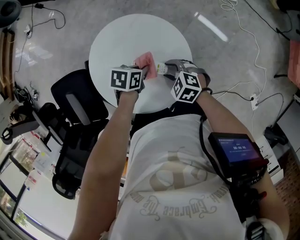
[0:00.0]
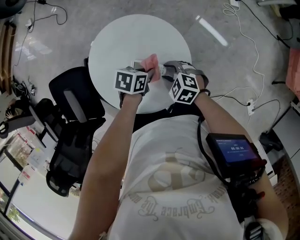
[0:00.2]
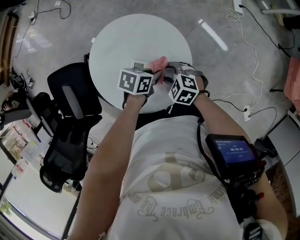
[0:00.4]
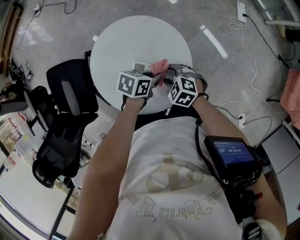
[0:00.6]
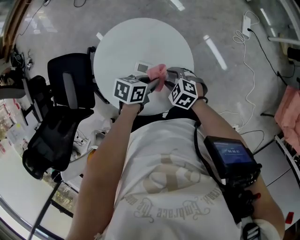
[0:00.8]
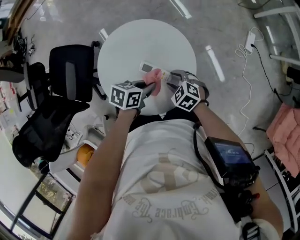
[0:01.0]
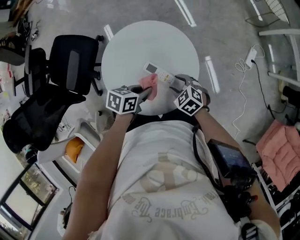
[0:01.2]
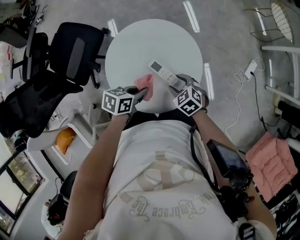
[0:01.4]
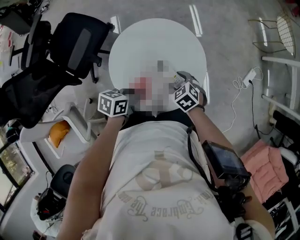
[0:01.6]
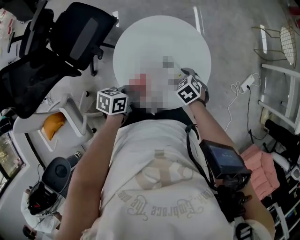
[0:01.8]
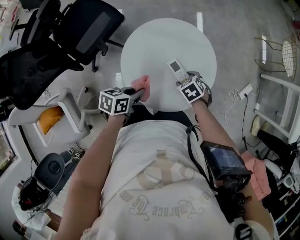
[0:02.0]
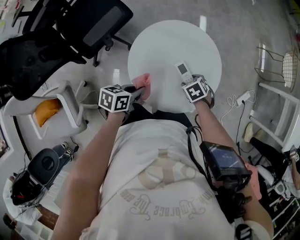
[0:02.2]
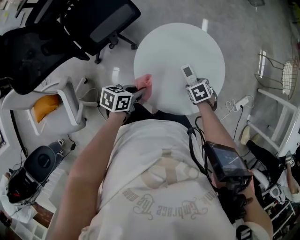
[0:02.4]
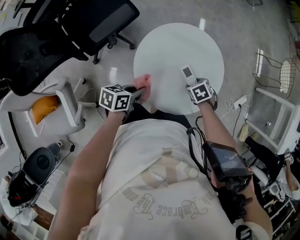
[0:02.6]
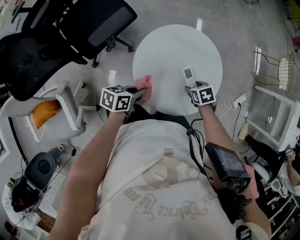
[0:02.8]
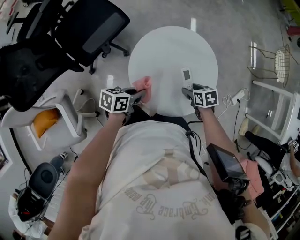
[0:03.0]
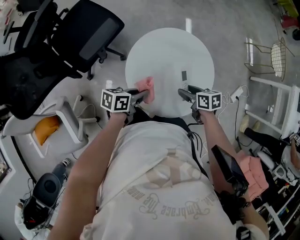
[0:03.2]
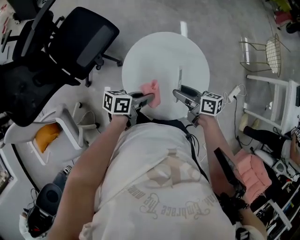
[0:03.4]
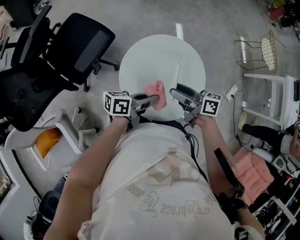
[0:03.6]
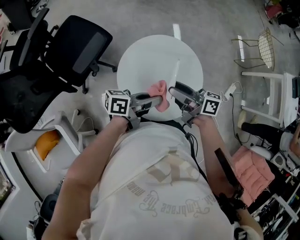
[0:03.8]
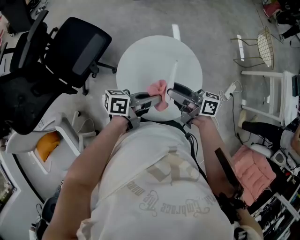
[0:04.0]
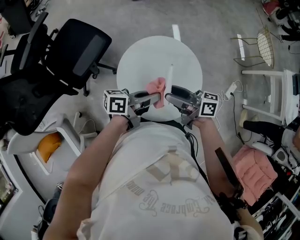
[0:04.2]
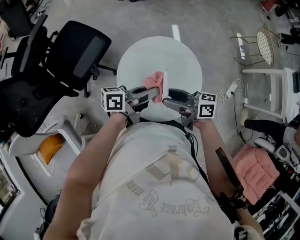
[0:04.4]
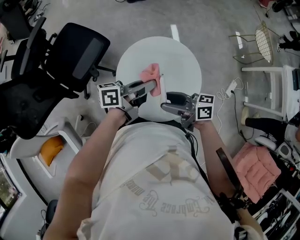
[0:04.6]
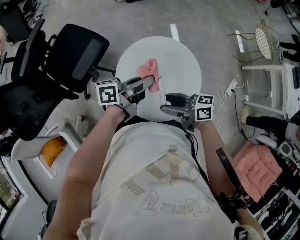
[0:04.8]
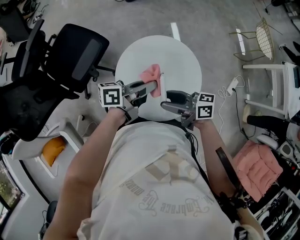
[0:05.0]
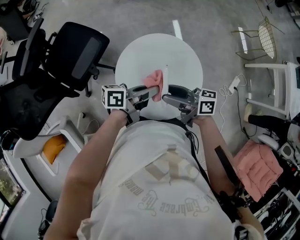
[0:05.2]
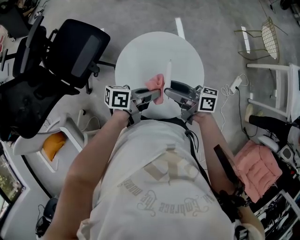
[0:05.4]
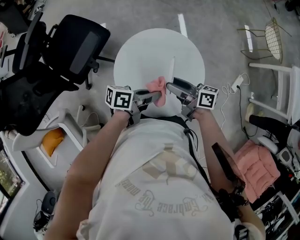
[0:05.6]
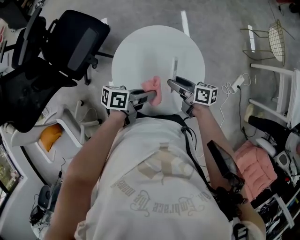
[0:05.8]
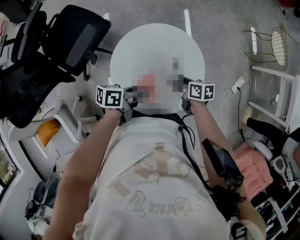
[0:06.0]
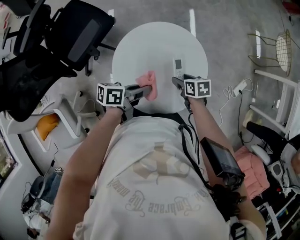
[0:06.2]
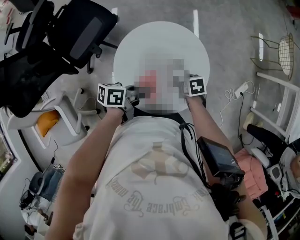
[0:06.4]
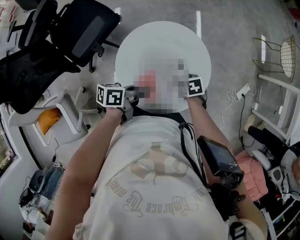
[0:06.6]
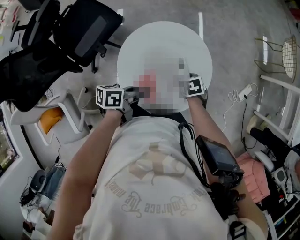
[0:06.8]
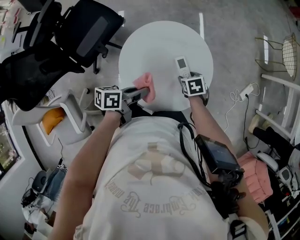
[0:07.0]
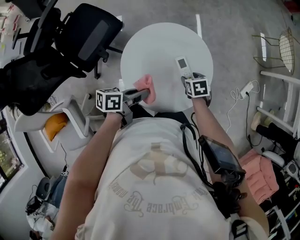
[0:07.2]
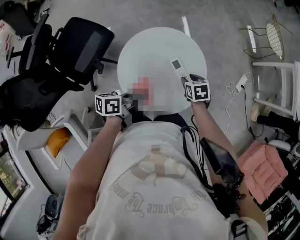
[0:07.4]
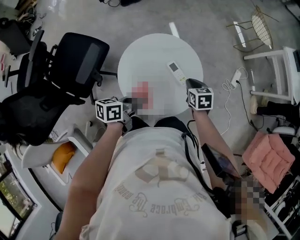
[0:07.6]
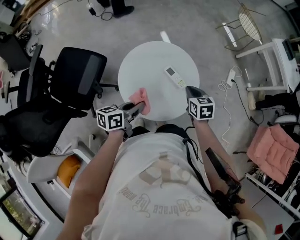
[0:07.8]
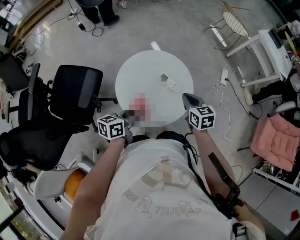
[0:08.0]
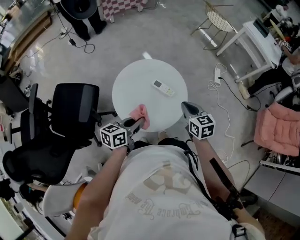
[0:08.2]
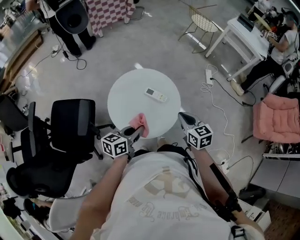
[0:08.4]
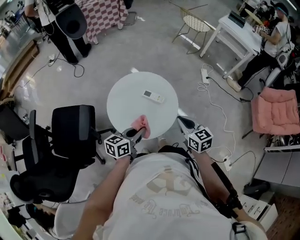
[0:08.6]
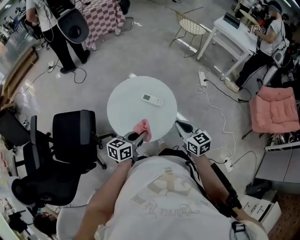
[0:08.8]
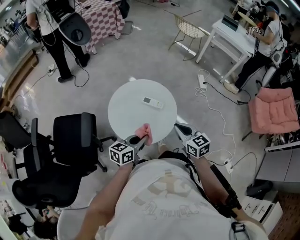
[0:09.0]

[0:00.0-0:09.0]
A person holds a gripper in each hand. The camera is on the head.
0.0 to 1.6 s: The left gripper moves roughly 15 cm, and turns by roughly 50 degrees. Meanwhile the right gripper turns by approximately 20 degrees.
1.6 to 3.0 s: The right gripper rotates roughly 30 degrees. The left gripper shifts by approximately 10 cm.
3.0 to 4.4 s: Both grippers travel together upward, about 20 cm. The right gripper tips its fingers upward by roughly 60 degrees. The left gripper tilts its fingers roughly 40 degrees upward.
4.4 to 6.0 s: The left gripper moves downward, roughly 10 cm, and swivels some 20 degrees, while the right gripper is displaced downward by approximately 20 cm, and angles its fingers downward, by about 40 degrees.
6.0 to 7.6 s: The left gripper moves some 10 cm. Meanwhile the right gripper shifts some 5 cm upward, turns by about 40 degrees, and closes its fingers.
7.6 to 9.0 s: The left gripper moves backward, upward and to the right, about 10 cm, and swivels some 40 degrees; the right gripper travels backward and upward by roughly 25 cm, and rotates approximately 30 degrees.

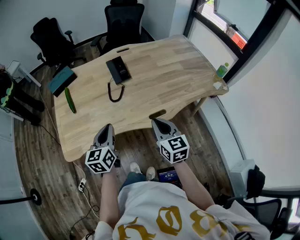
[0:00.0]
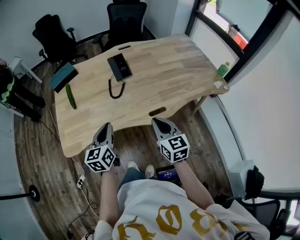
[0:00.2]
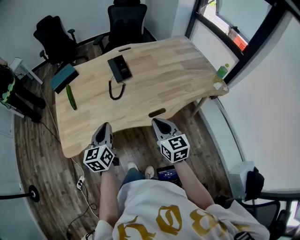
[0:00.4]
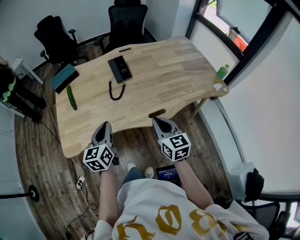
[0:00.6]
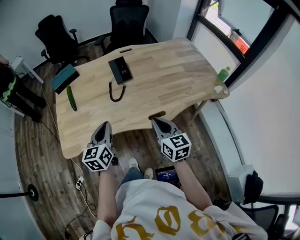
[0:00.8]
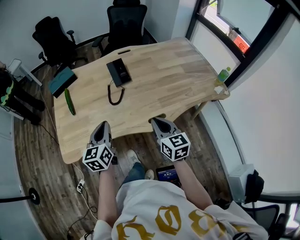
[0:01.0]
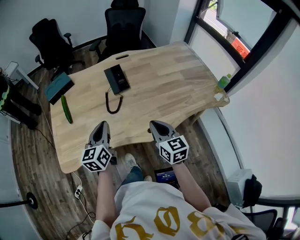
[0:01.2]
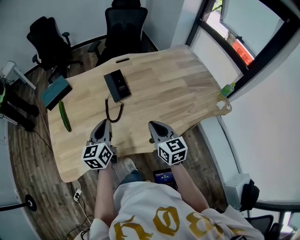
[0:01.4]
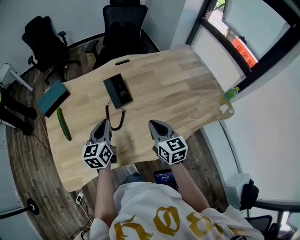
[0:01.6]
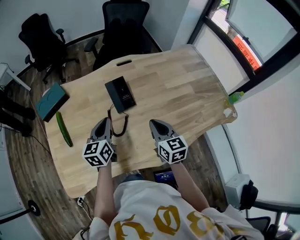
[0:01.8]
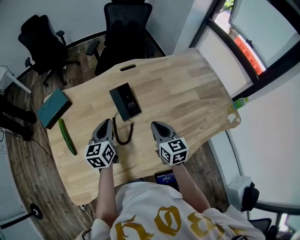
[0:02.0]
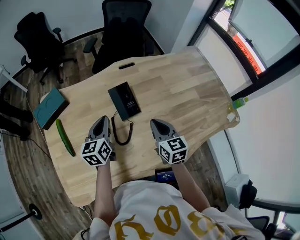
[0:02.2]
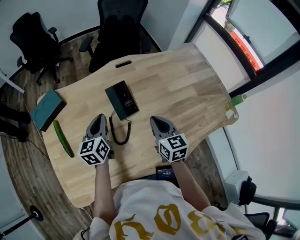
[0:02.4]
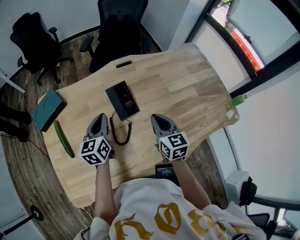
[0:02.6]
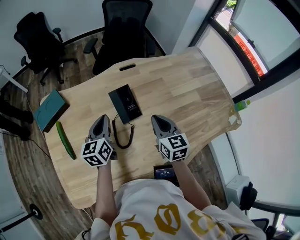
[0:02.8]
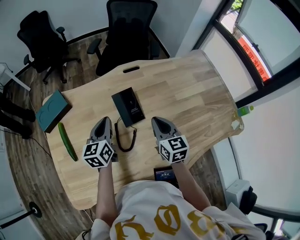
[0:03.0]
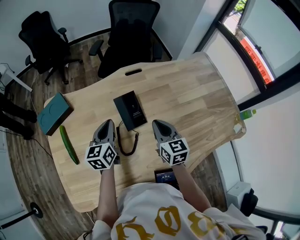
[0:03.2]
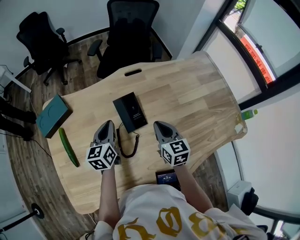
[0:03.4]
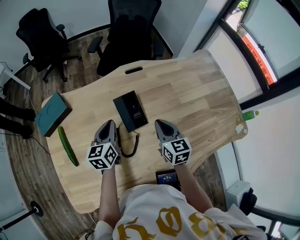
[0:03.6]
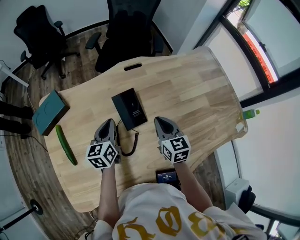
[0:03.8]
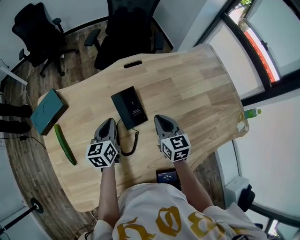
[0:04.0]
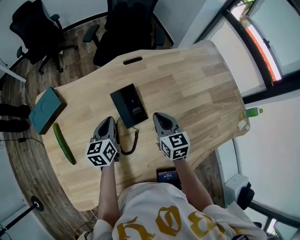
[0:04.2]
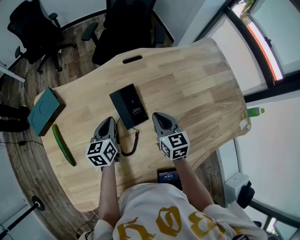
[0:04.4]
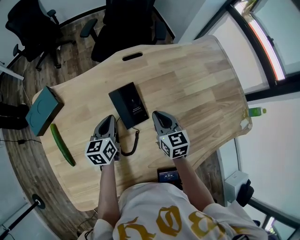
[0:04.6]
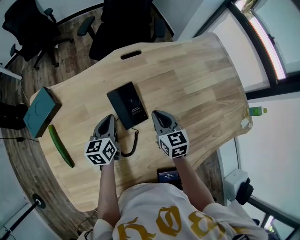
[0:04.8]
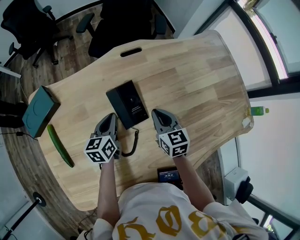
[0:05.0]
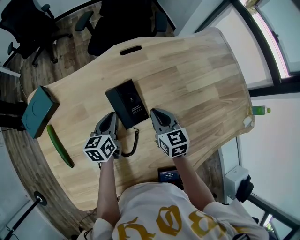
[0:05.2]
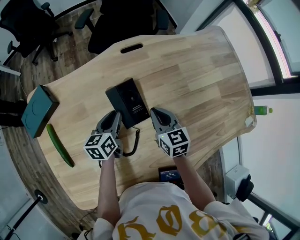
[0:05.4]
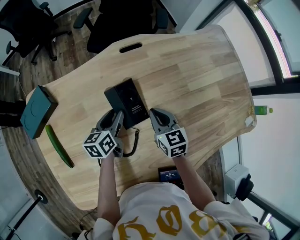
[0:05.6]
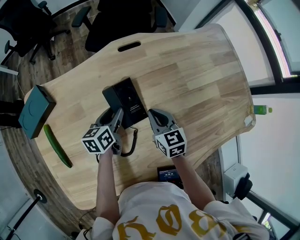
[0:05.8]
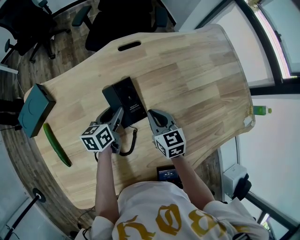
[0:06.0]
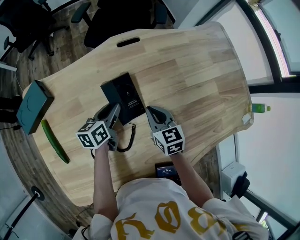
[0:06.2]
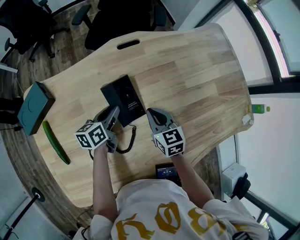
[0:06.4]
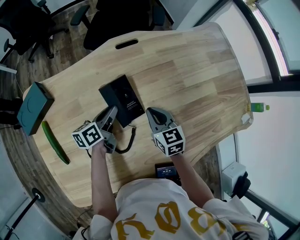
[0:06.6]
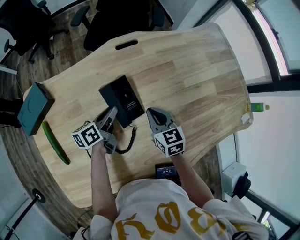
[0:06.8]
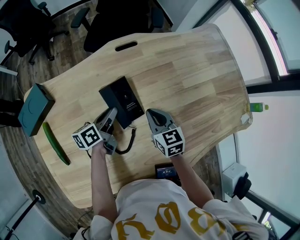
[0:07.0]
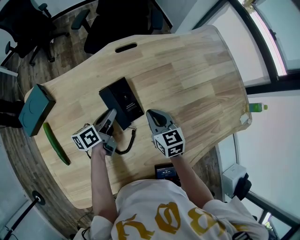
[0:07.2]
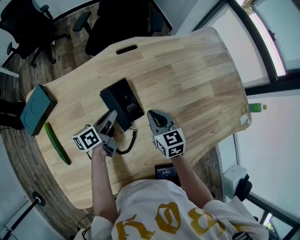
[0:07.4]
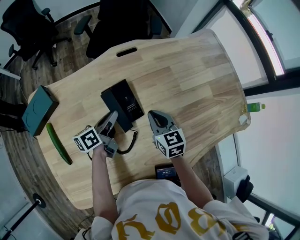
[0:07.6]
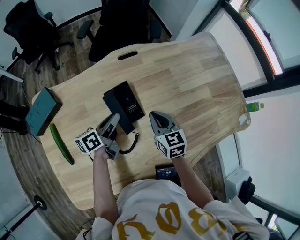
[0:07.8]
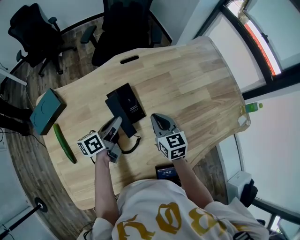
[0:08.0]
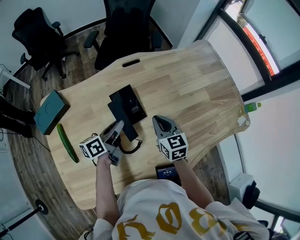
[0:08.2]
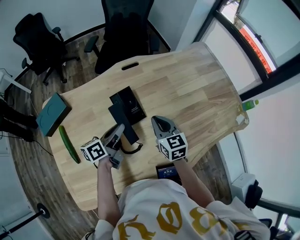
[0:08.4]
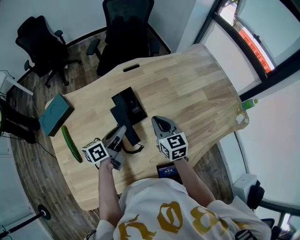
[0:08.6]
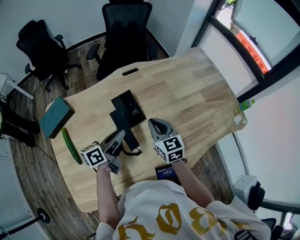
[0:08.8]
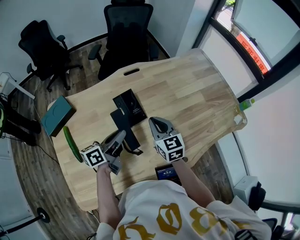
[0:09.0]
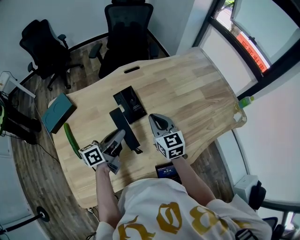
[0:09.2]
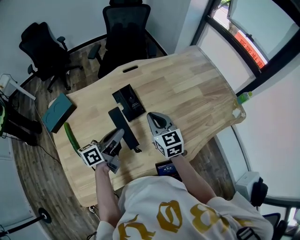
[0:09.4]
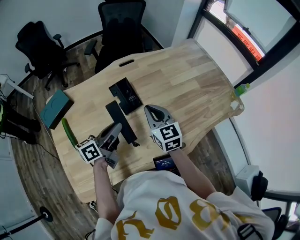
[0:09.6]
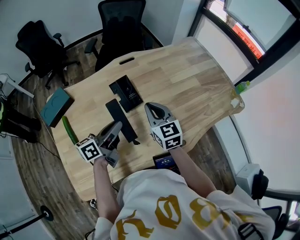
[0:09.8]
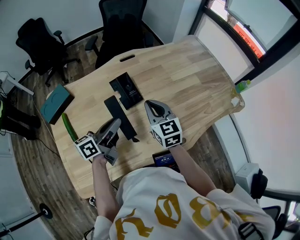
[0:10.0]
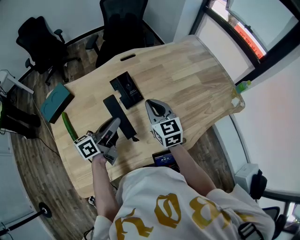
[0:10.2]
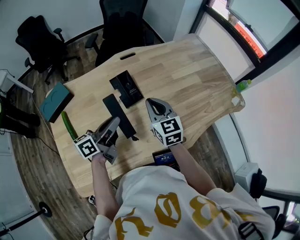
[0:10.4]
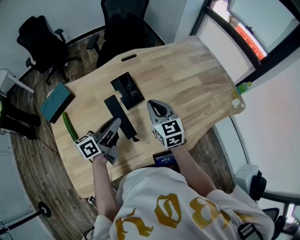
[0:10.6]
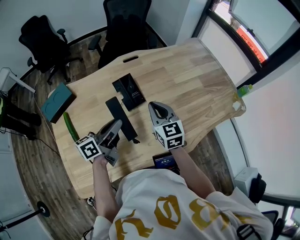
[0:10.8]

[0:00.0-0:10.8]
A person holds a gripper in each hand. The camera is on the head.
0.0 to 1.6 s: The two grippers go some 20 cm forward.
1.6 to 3.0 s: The two grippers go some 15 cm forward.
3.0 to 4.6 s: The right gripper is displaced downward and forward by about 10 cm; the left gripper travels downward by approximately 10 cm.
4.6 to 6.2 s: The left gripper shifts by roughly 5 cm, and opens its fingers.
6.2 to 7.8 s: The left gripper goes approximately 5 cm upward.
7.8 to 9.2 s: The right gripper is displaced upward and backward by approximately 10 cm. Meanwhile the left gripper moves backward and upward, approximately 15 cm.
9.2 to 10.8 s: The grippers stay close to where they were, moving slightly.

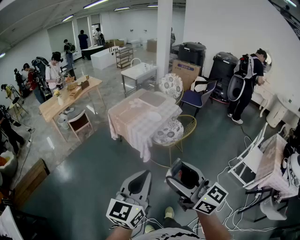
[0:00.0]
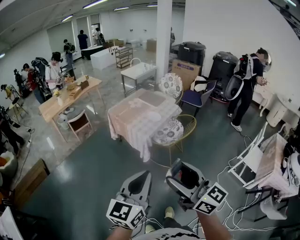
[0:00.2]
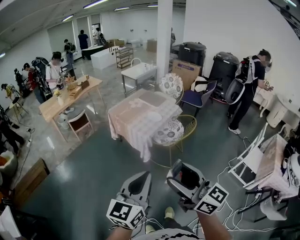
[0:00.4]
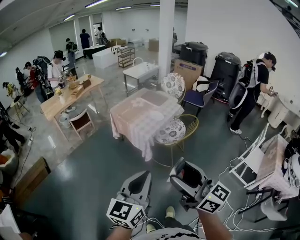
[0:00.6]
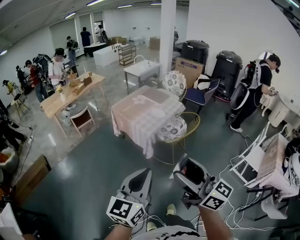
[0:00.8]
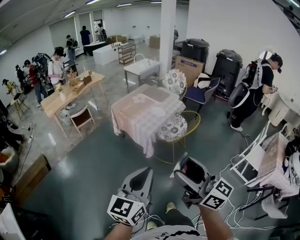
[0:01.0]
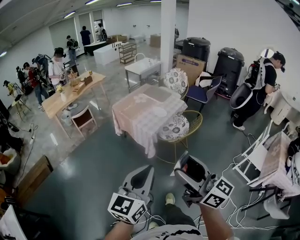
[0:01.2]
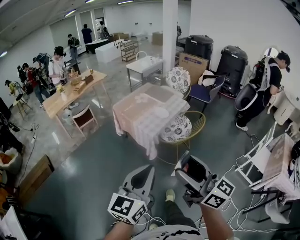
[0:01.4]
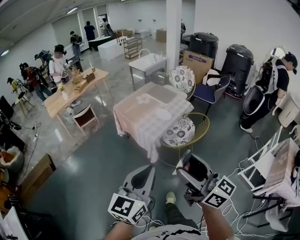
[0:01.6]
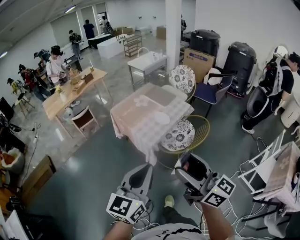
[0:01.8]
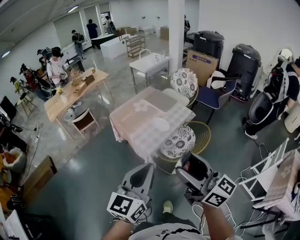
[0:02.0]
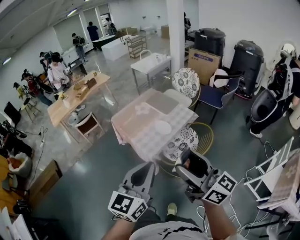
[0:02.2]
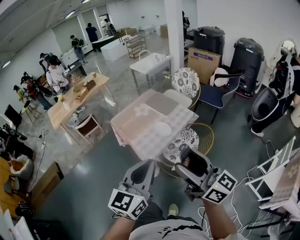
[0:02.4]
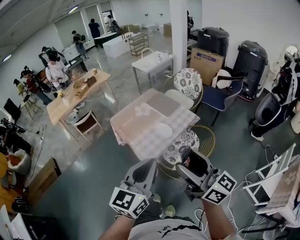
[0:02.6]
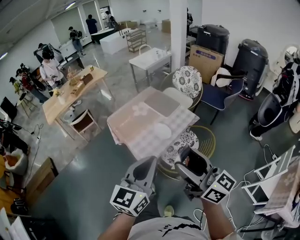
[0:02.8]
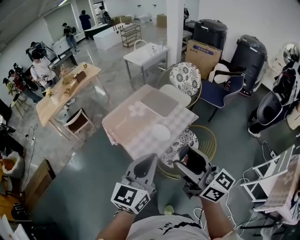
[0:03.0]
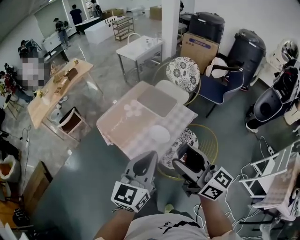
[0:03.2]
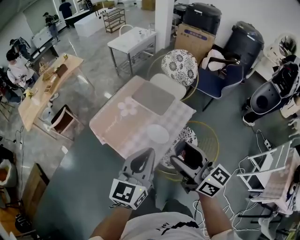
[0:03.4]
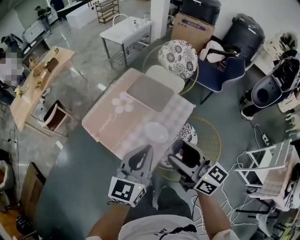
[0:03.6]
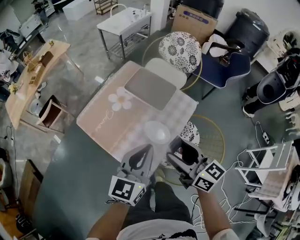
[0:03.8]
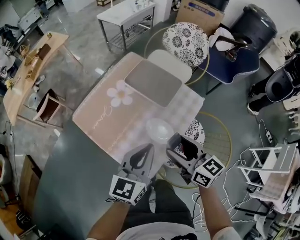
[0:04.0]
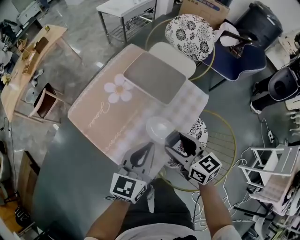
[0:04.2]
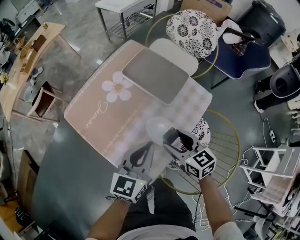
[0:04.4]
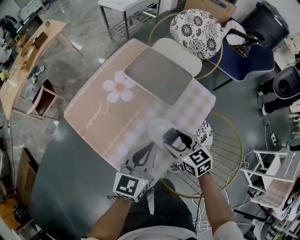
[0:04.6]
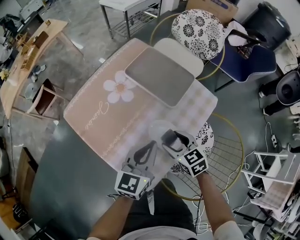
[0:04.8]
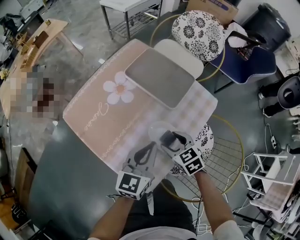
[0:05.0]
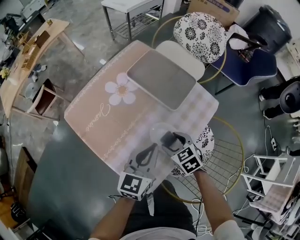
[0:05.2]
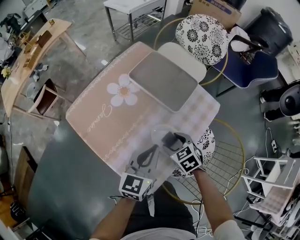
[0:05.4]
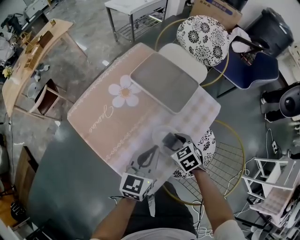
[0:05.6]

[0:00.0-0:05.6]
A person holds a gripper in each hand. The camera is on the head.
0.0 to 1.4 s: Both grippers move forward, roughly 5 cm.
1.4 to 2.8 s: The two grippers go some 35 cm forward and to the right.
2.8 to 4.2 s: The right gripper travels downward and forward by roughly 50 cm, and points its fingers roughly 30 degrees further downward, while the left gripper shifts about 40 cm forward and downward.
4.2 to 5.6 s: The right gripper travels downward by roughly 20 cm, and tips its fingers downward by some 40 degrees. Meanwhile the left gripper travels downward by approximately 10 cm.
